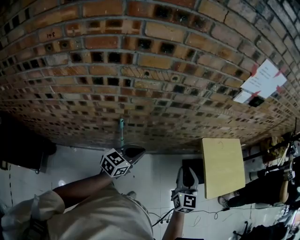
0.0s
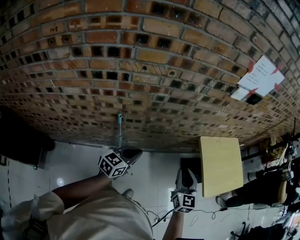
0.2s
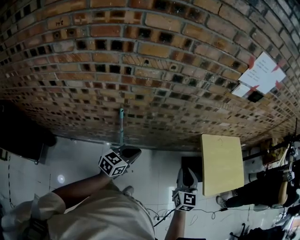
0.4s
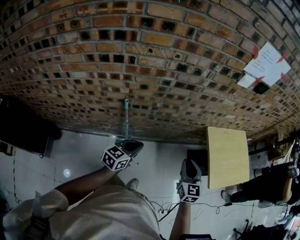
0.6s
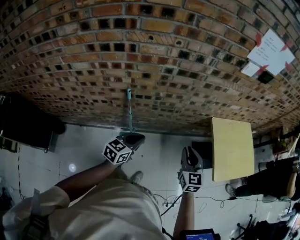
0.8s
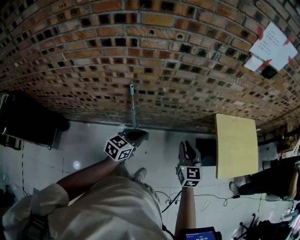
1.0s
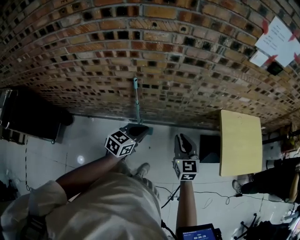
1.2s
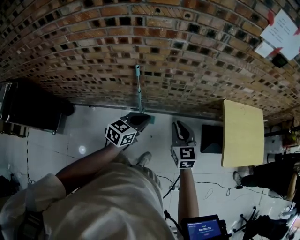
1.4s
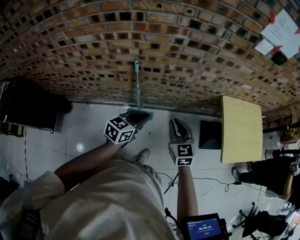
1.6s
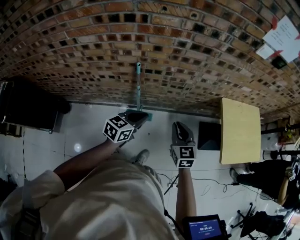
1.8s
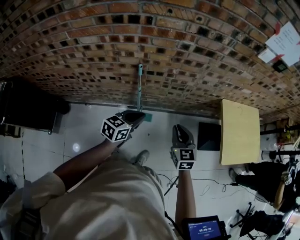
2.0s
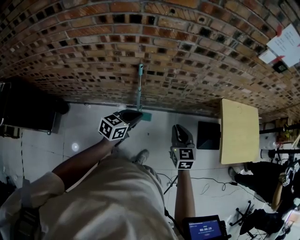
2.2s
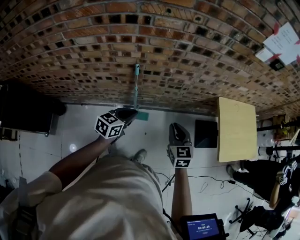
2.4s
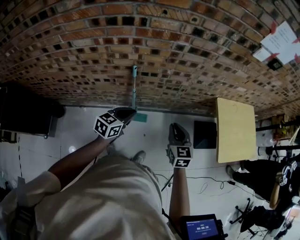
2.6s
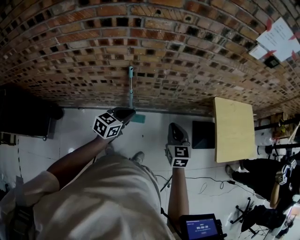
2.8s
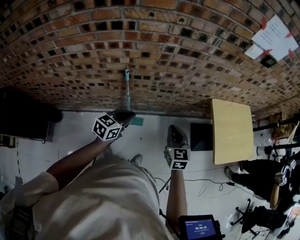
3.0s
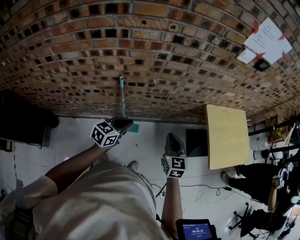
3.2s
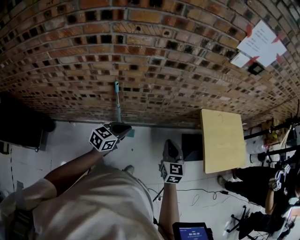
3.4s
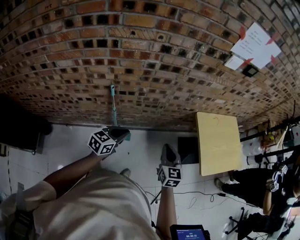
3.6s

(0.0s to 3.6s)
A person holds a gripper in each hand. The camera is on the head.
0.0s - 1.8s: The right gripper heads downward, backward and to the left, covering some 15 cm, and turns by roughly 20 degrees; the left gripper goes approximately 15 cm backward and downward.
1.8s - 3.6s: The right gripper moves to the right, roughly 10 cm. Meanwhile the left gripper moves about 5 cm to the left and comes back.

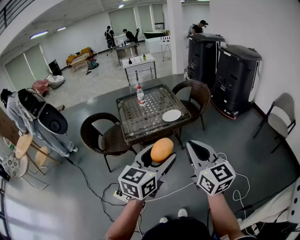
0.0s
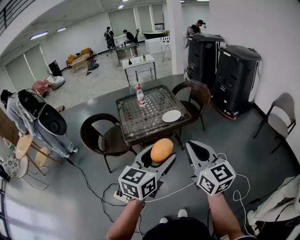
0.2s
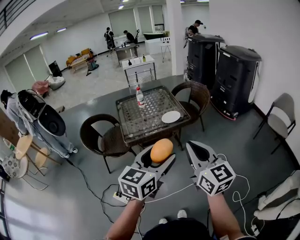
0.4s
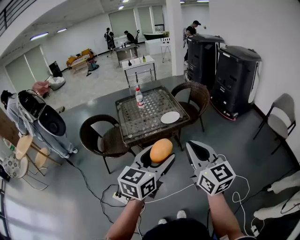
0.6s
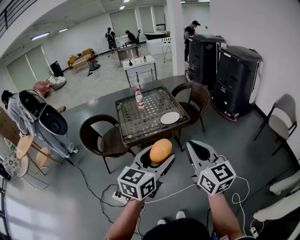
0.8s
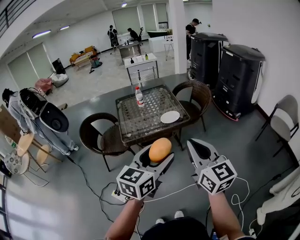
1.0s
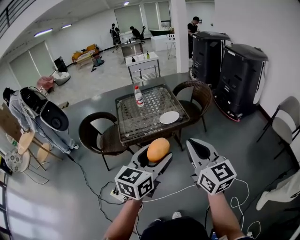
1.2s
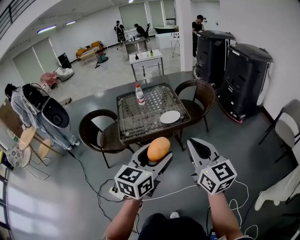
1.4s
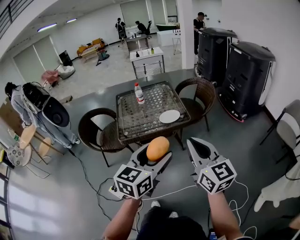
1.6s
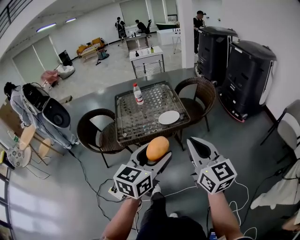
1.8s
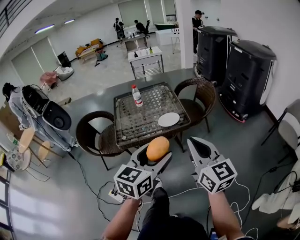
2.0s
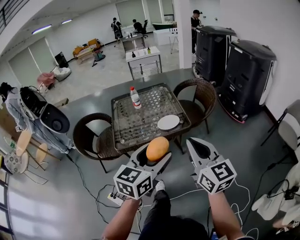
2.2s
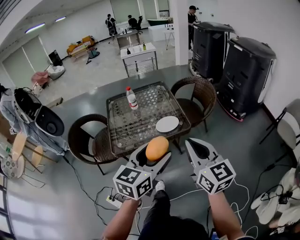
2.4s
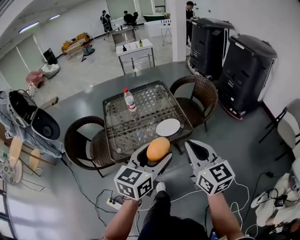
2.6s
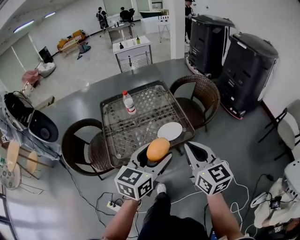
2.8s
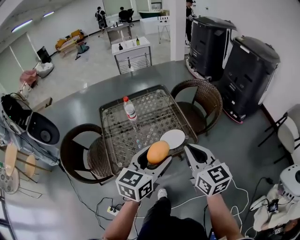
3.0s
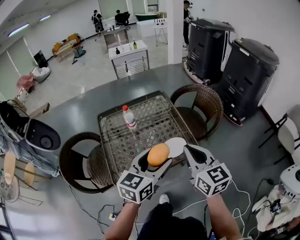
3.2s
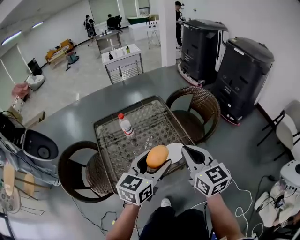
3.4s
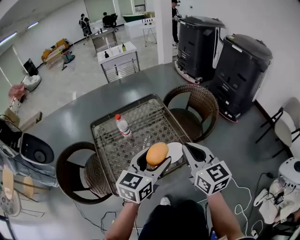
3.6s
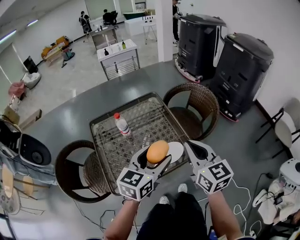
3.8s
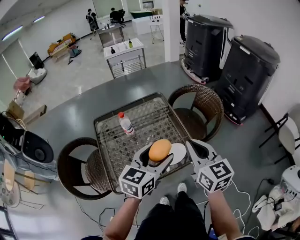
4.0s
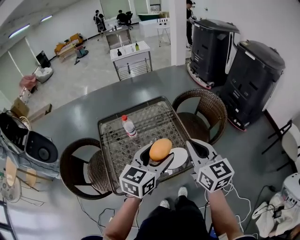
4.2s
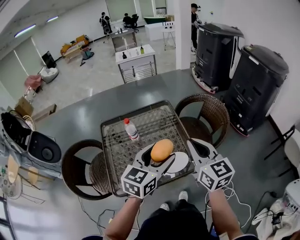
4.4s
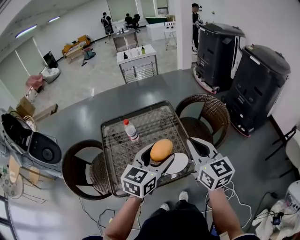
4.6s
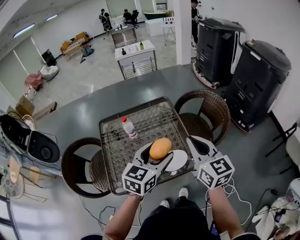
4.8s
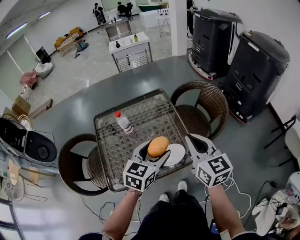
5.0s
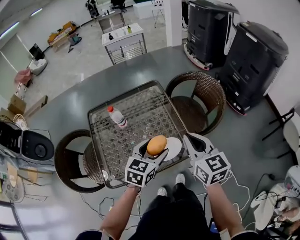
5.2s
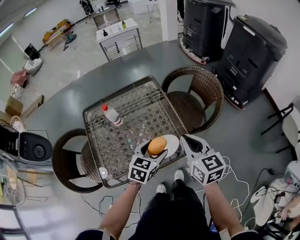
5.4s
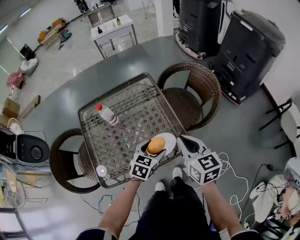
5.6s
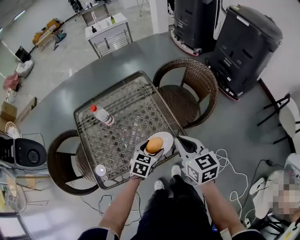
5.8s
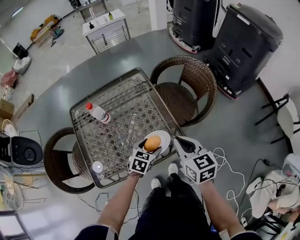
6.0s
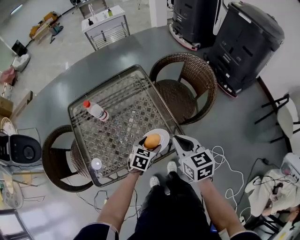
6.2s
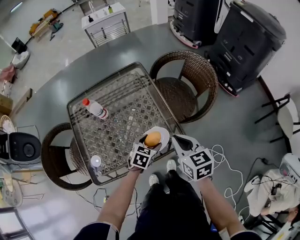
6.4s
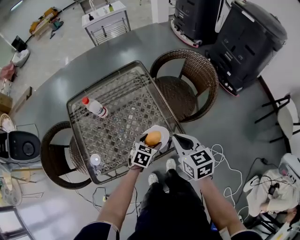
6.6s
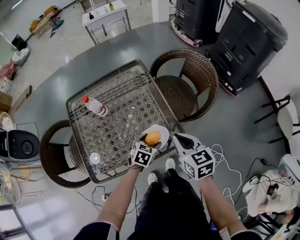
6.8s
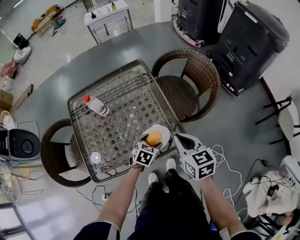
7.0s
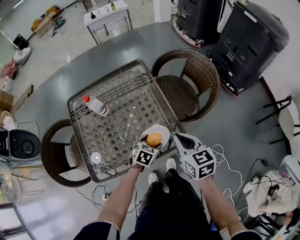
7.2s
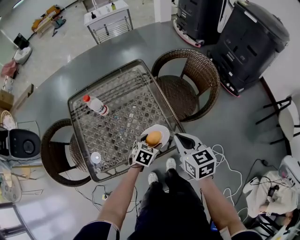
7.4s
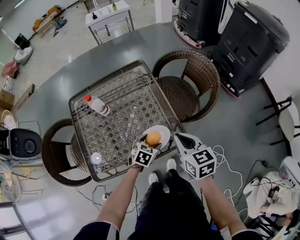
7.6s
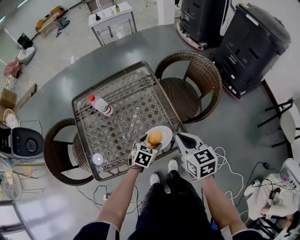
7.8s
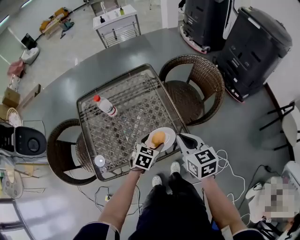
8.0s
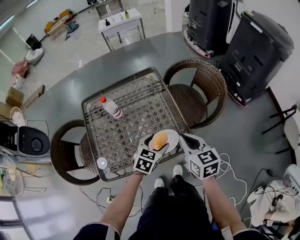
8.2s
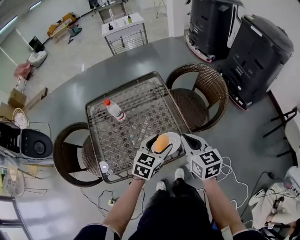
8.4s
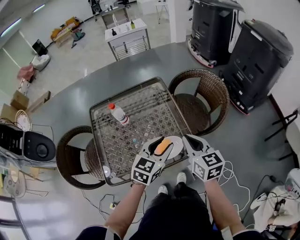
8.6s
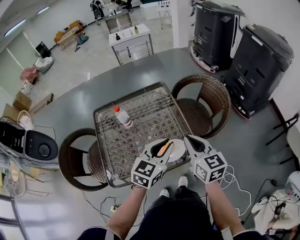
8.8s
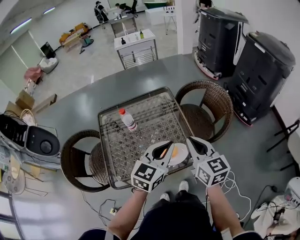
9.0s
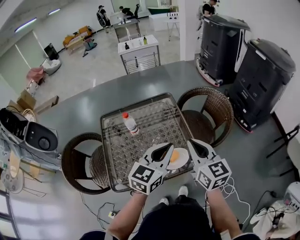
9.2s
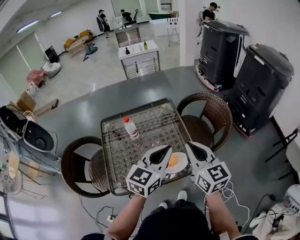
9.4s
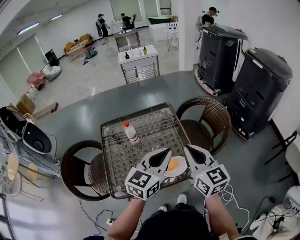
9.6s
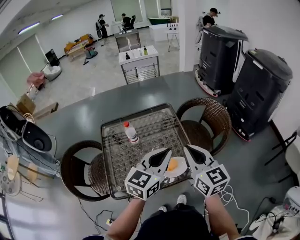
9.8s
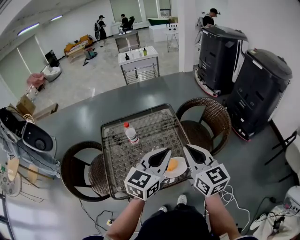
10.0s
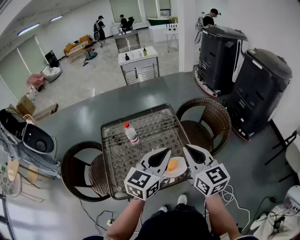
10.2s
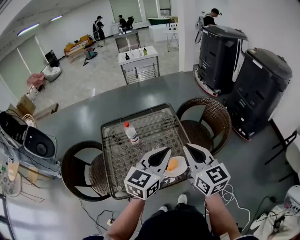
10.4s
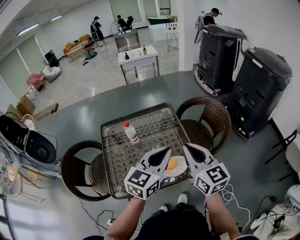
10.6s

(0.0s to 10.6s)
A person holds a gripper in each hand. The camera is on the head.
0.0s - 1.6s: The grippers both shift forward and to the right by approximately 10 cm.
1.6s - 3.0s: Both grippers travel together forward, about 25 cm.
3.0s - 4.6s: The grippers both shift forward by about 15 cm.
4.6s - 6.0s: The right gripper travels downward by roughly 15 cm, and turns by approximately 20 degrees; the left gripper heads downward, covering roughly 30 cm, and angles its fingers downward, by some 30 degrees.
6.0s - 7.6s: There are only small adjustments of the grippers.
7.6s - 9.0s: The left gripper is displaced upward by about 30 cm, tips its fingers upward by some 40 degrees, and closes up. The right gripper travels upward by approximately 10 cm.
9.0s - 10.6s: Both grippers move upward, roughly 5 cm.

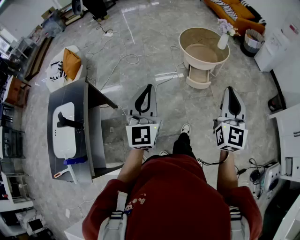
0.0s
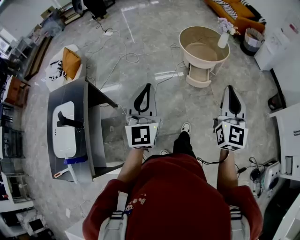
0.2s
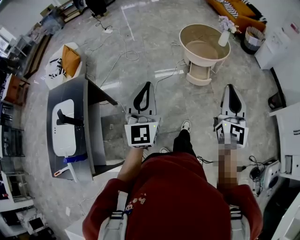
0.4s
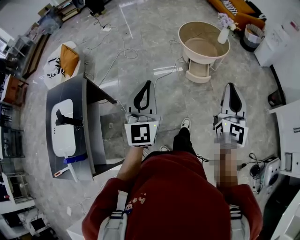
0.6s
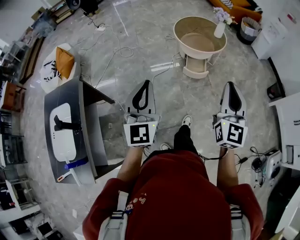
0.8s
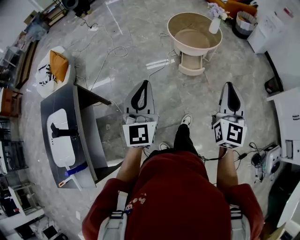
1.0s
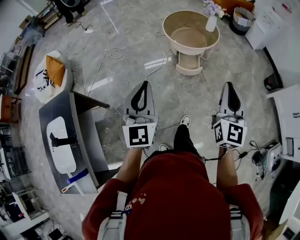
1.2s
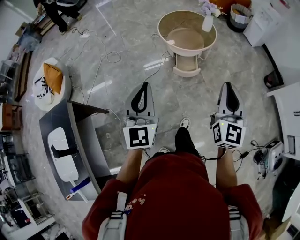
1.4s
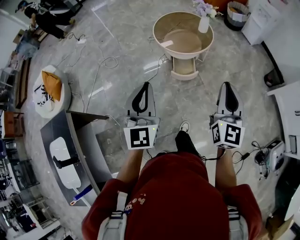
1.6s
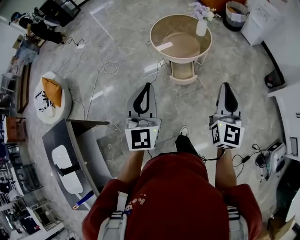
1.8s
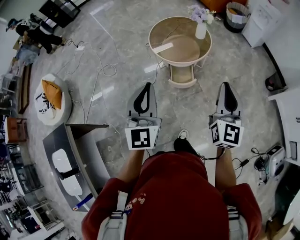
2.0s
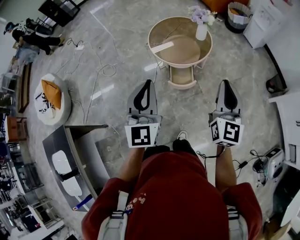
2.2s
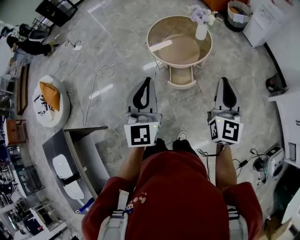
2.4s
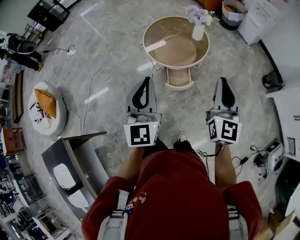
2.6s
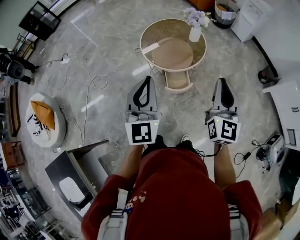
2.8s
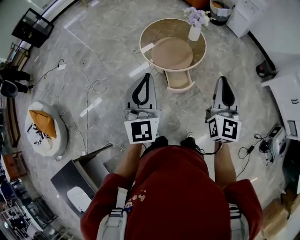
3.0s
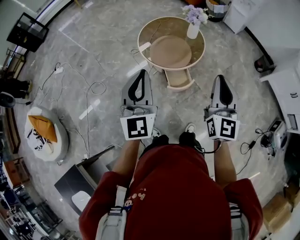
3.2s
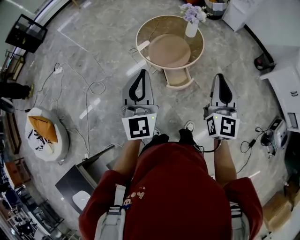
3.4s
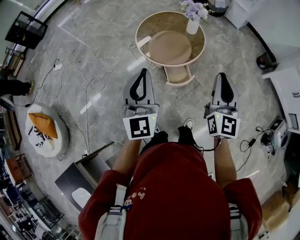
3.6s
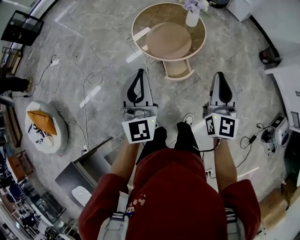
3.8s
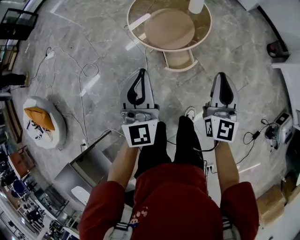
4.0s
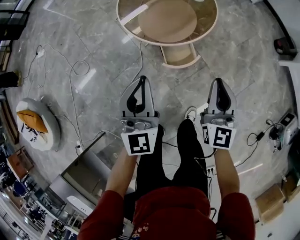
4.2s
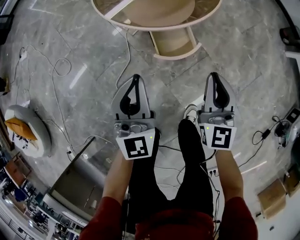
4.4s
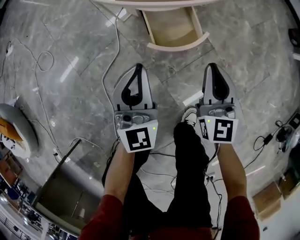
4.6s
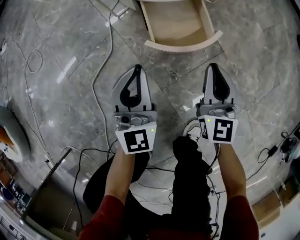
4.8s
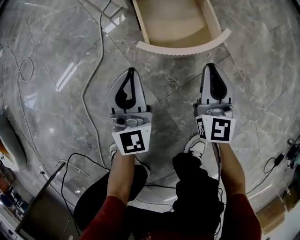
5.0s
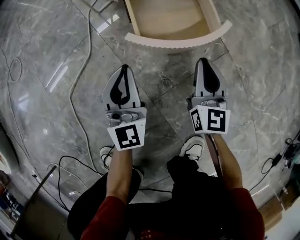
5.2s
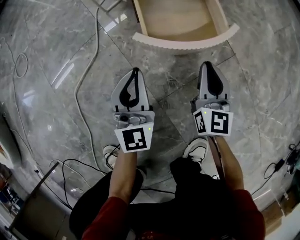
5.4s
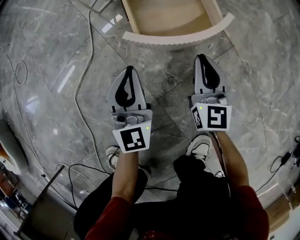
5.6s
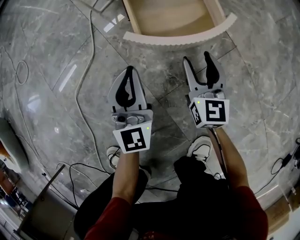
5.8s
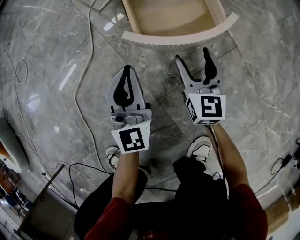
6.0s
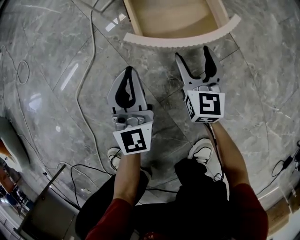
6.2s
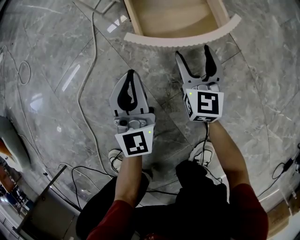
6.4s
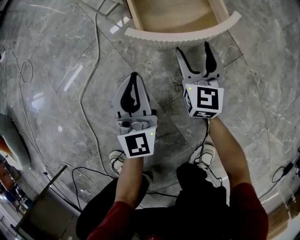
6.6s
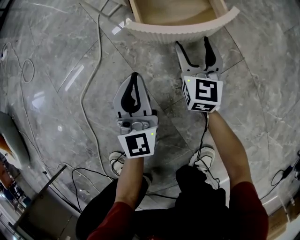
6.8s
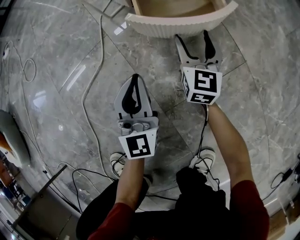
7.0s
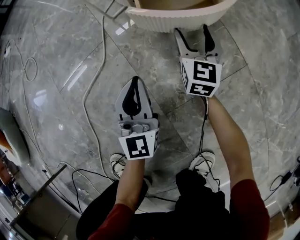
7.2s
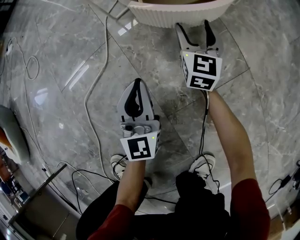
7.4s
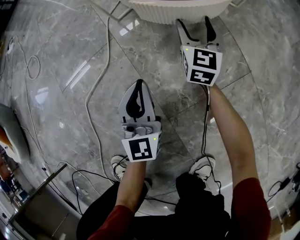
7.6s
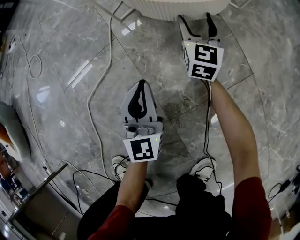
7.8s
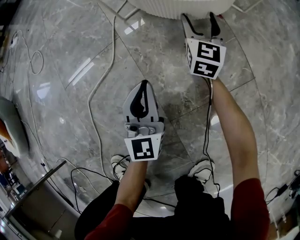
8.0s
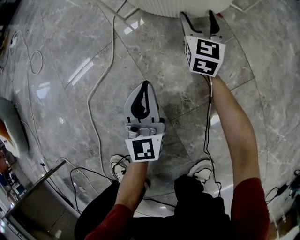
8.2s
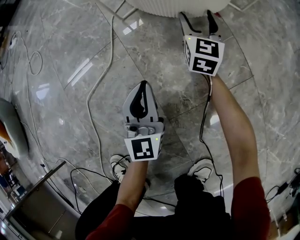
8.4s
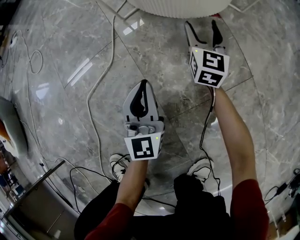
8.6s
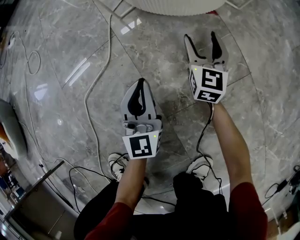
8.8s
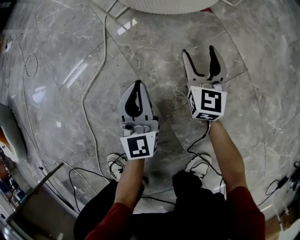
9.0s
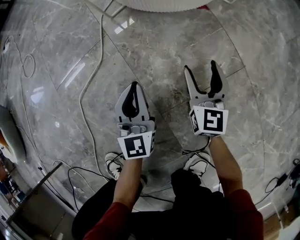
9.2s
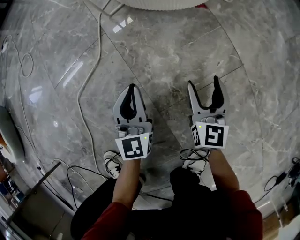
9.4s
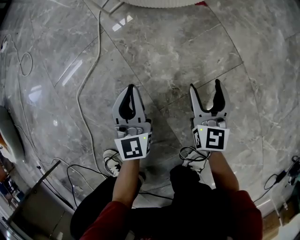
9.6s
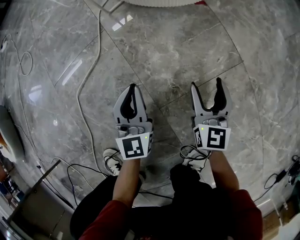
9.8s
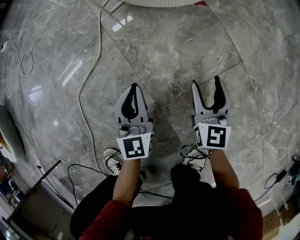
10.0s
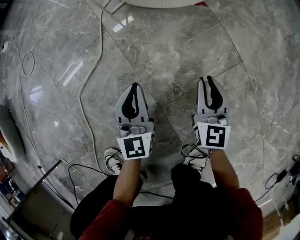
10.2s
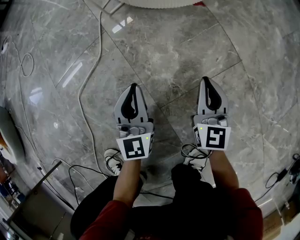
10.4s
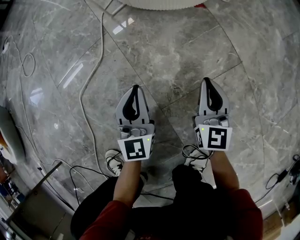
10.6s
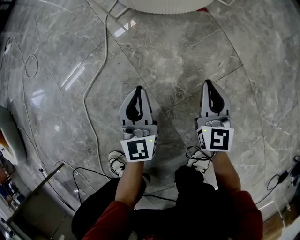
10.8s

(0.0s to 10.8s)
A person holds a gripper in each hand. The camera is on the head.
0.0s - 1.6s: The two grippers go roughly 20 cm forward and to the right.
1.6s - 3.0s: The right gripper travels forward and to the left by roughly 20 cm, while the left gripper goes approximately 25 cm forward.
3.0s - 4.6s: Both grippers travel together downward, some 60 cm.
4.6s - 6.2s: Both grippers travel together downward, roughly 35 cm. The right gripper opens.
6.2s - 7.8s: The right gripper travels forward by about 20 cm.
7.8s - 9.2s: The right gripper shifts some 20 cm backward.
9.2s - 10.8s: The right gripper shifts some 5 cm backward, and closes up.
